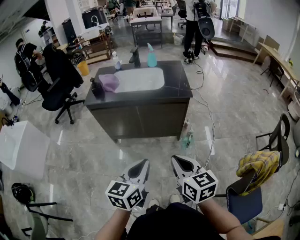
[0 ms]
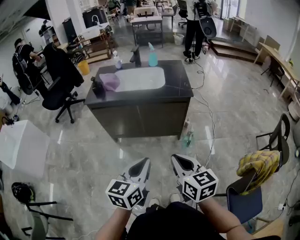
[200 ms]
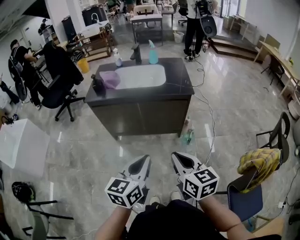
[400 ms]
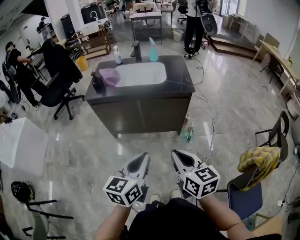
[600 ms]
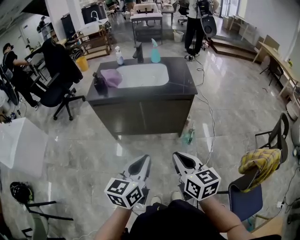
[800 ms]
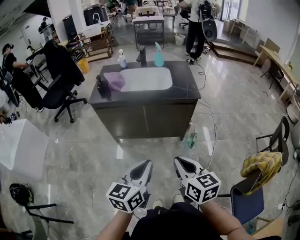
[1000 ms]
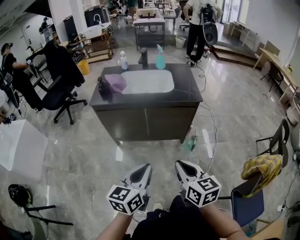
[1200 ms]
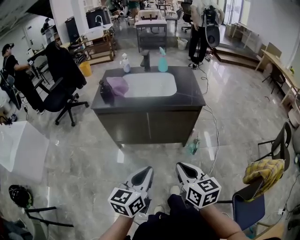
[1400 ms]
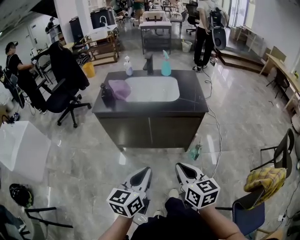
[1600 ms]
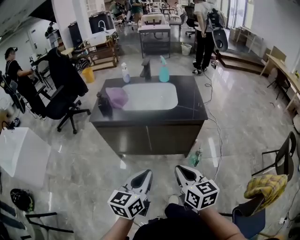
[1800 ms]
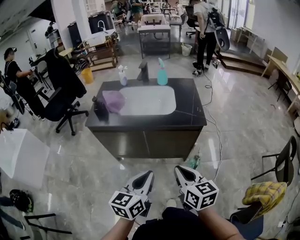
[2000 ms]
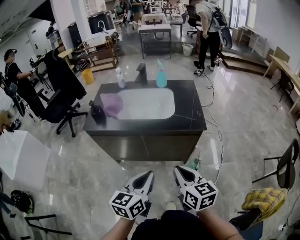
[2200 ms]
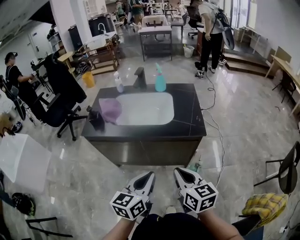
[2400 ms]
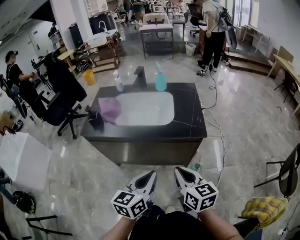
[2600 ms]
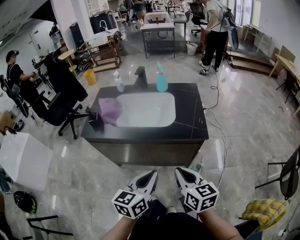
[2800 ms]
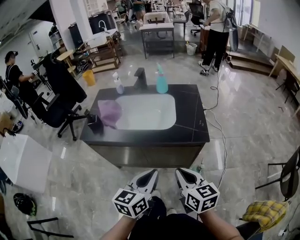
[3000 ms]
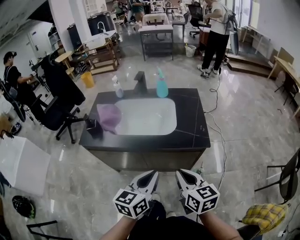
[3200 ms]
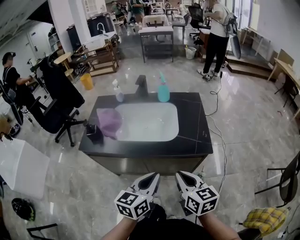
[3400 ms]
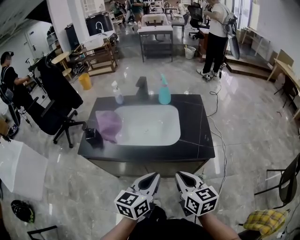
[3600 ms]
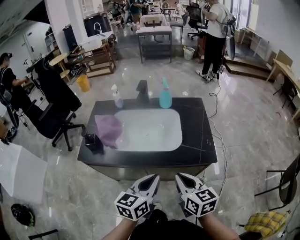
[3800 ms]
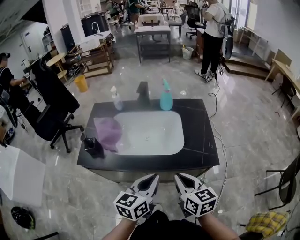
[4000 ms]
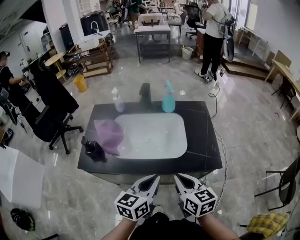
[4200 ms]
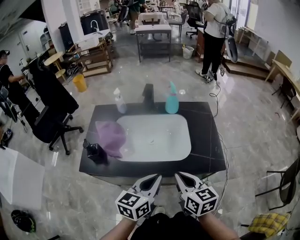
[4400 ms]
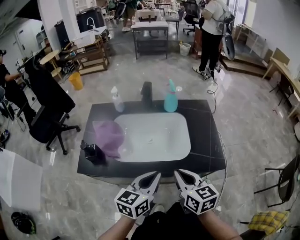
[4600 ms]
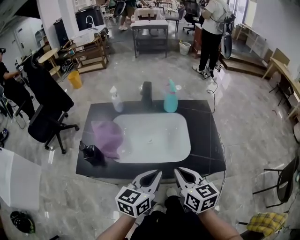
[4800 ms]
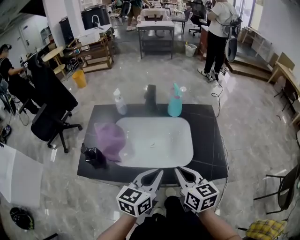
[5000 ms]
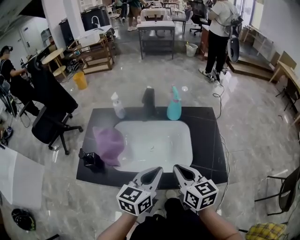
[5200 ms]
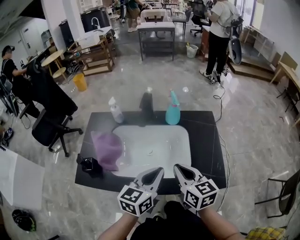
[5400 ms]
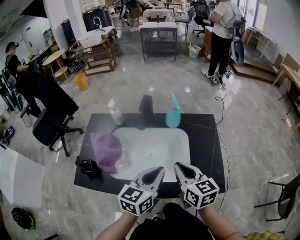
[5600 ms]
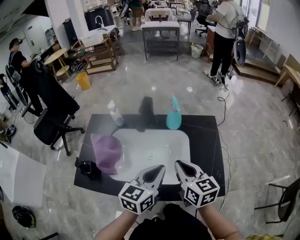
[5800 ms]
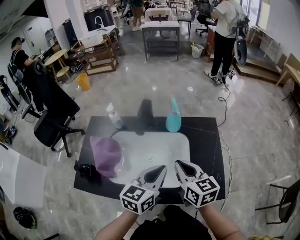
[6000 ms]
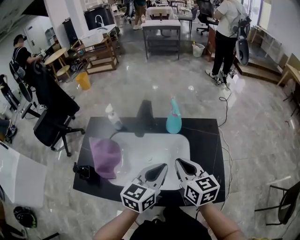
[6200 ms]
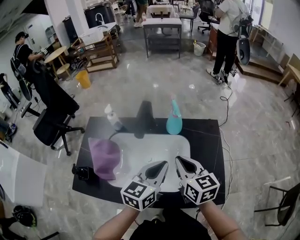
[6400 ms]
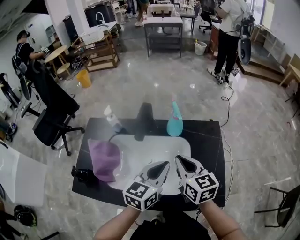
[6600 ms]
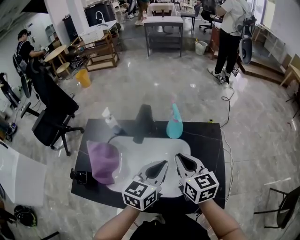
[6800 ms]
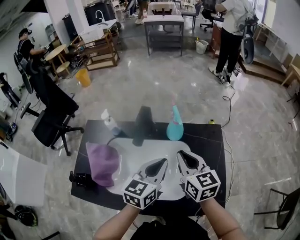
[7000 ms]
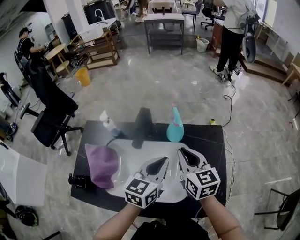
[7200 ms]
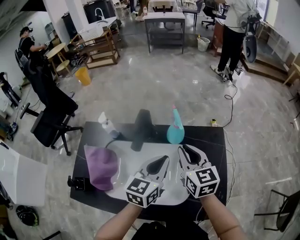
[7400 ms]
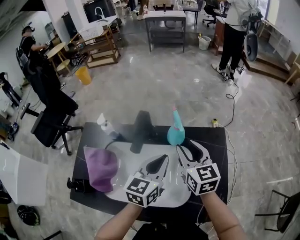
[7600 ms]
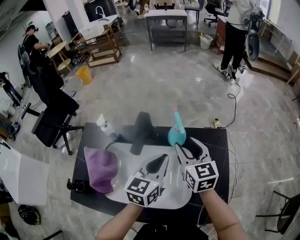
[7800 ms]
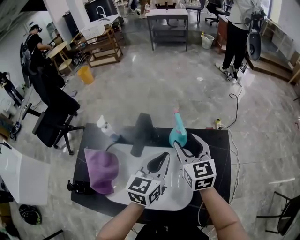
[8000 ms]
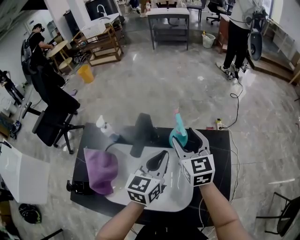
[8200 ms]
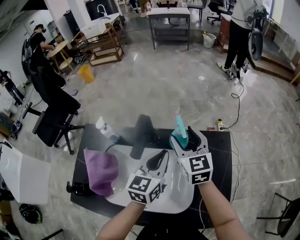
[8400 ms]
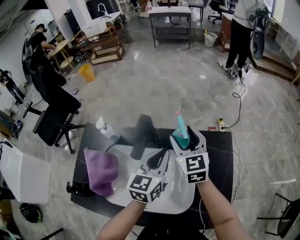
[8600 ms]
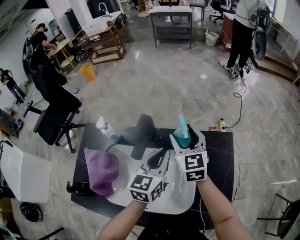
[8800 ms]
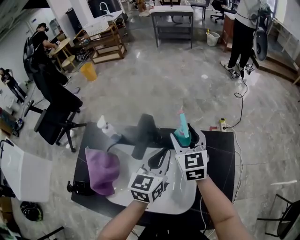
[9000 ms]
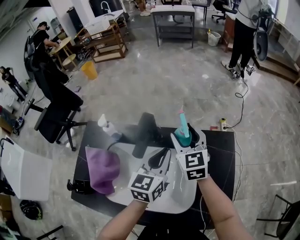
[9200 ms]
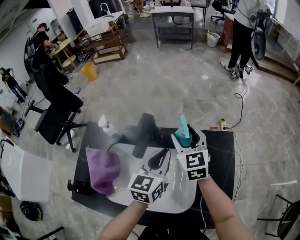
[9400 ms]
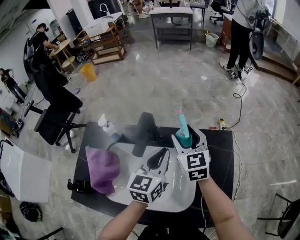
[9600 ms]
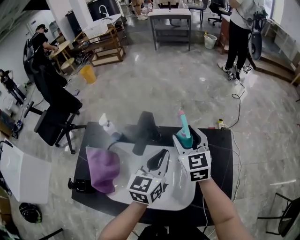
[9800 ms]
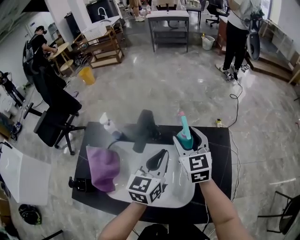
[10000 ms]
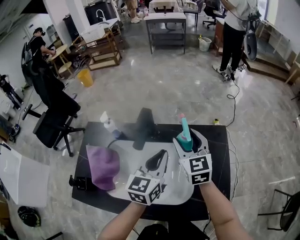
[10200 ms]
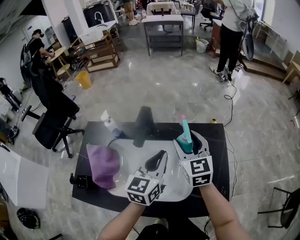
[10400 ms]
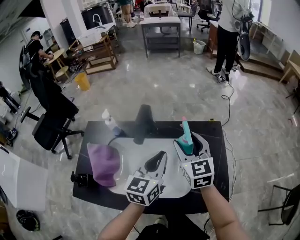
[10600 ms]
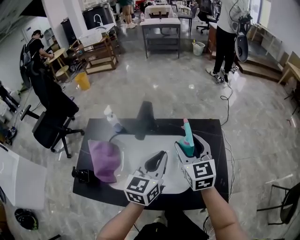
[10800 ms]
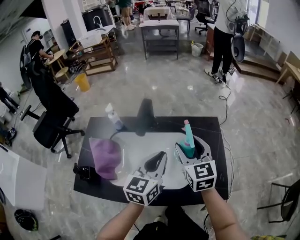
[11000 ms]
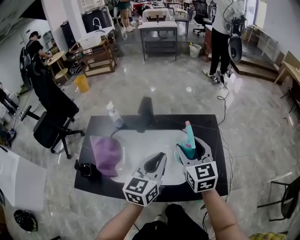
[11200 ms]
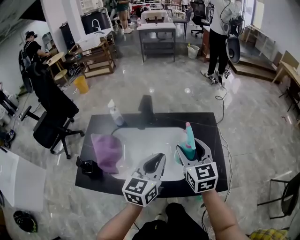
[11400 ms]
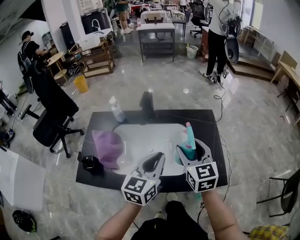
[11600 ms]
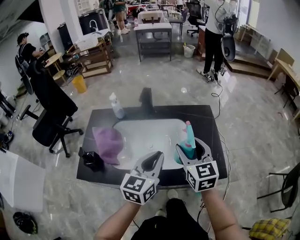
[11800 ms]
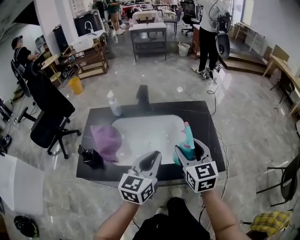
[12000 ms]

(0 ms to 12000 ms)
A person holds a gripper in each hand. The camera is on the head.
0 ms - 1600 ms: The left gripper is displaced to the left and forward by about 10 cm; the right gripper shifts roughly 10 cm forward and to the left.
1600 ms - 3000 ms: The right gripper moves forward, approximately 20 cm. Meanwhile the left gripper goes approximately 25 cm forward and to the right.
3000 ms - 4400 ms: Both grippers move forward and to the left, some 20 cm.
4400 ms - 6000 ms: Both grippers travel together forward, roughly 20 cm.
6000 ms - 7600 ms: Both grippers travel together forward, about 15 cm. The right gripper opens.
7600 ms - 9000 ms: The right gripper is displaced forward by roughly 10 cm, and opens up; the left gripper goes some 5 cm forward.
9000 ms - 10400 ms: The two grippers go about 10 cm backward.
10400 ms - 12000 ms: Both grippers move backward, roughly 25 cm.

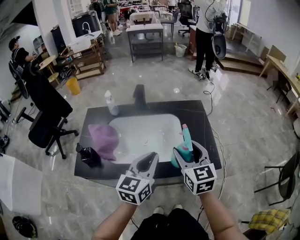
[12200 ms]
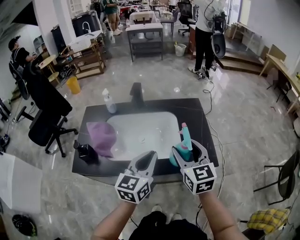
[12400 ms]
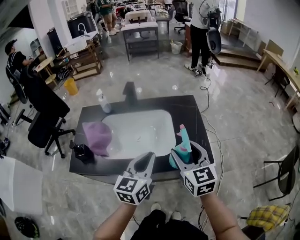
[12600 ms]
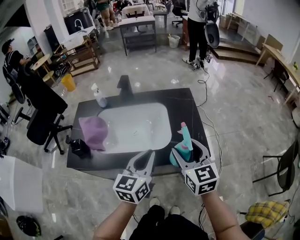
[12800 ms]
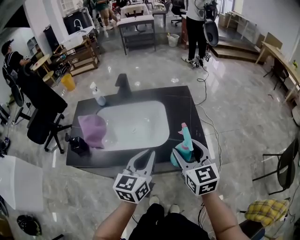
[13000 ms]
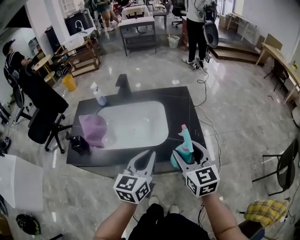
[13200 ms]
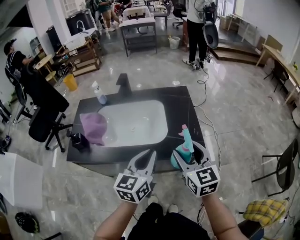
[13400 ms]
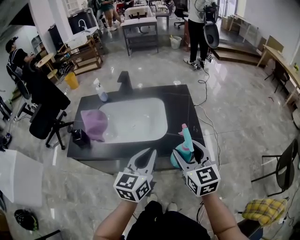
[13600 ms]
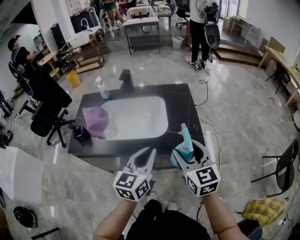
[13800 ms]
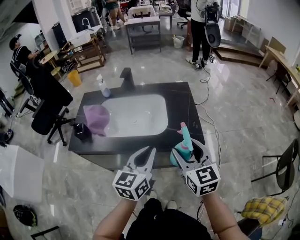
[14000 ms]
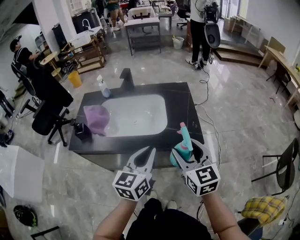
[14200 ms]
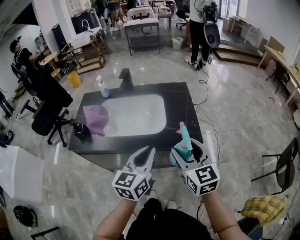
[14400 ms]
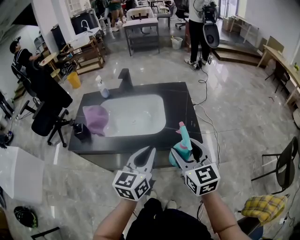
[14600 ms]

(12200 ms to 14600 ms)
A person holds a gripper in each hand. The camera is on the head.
12200 ms - 13400 ms: The two grippers go roughly 15 cm to the right and backward.
13400 ms - 14600 ms: The left gripper ends up approximately 5 cm from where it was. The right gripper shifts some 5 cm backward.

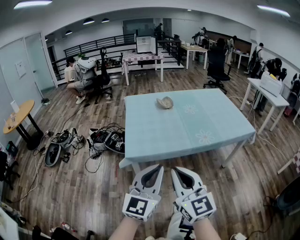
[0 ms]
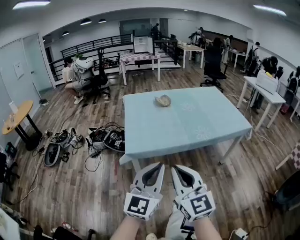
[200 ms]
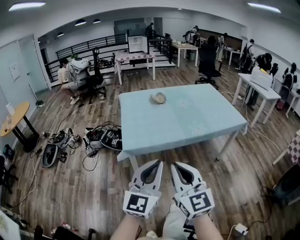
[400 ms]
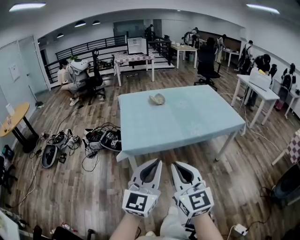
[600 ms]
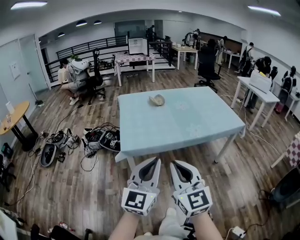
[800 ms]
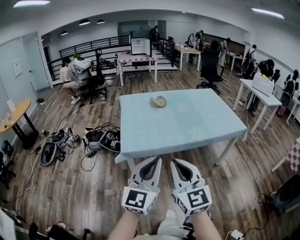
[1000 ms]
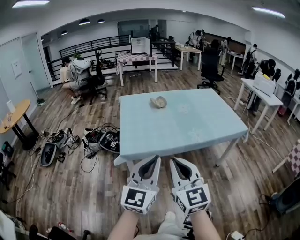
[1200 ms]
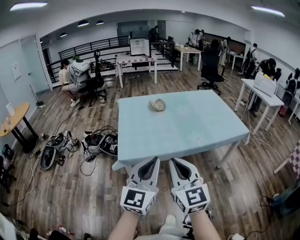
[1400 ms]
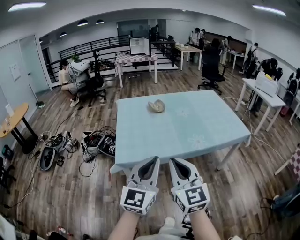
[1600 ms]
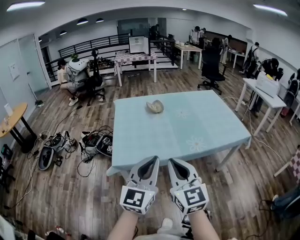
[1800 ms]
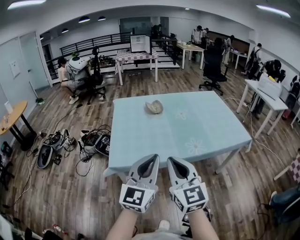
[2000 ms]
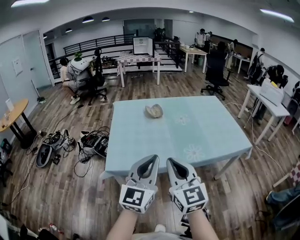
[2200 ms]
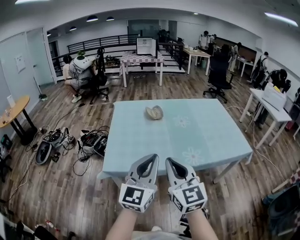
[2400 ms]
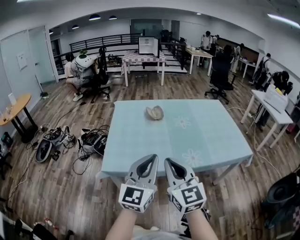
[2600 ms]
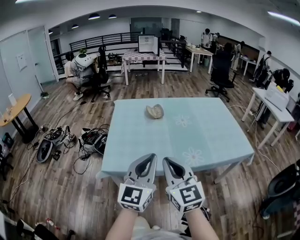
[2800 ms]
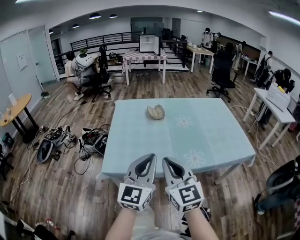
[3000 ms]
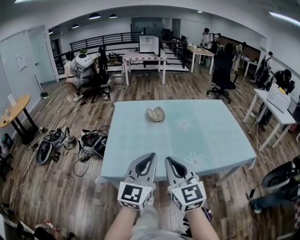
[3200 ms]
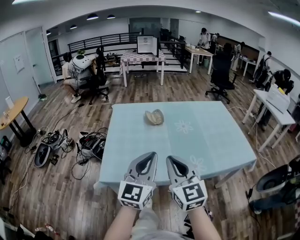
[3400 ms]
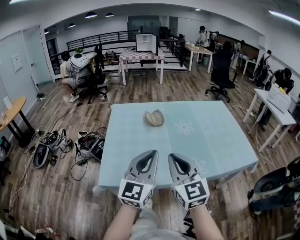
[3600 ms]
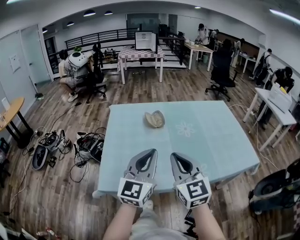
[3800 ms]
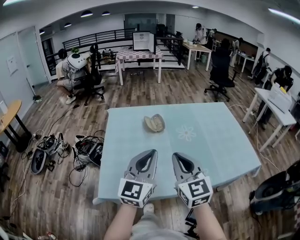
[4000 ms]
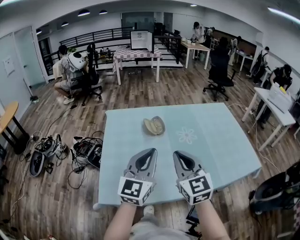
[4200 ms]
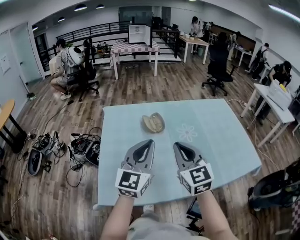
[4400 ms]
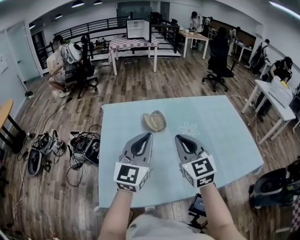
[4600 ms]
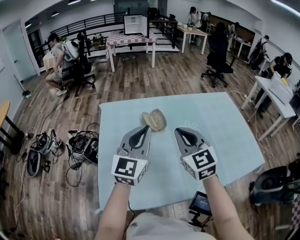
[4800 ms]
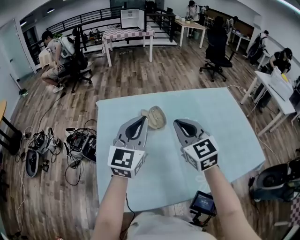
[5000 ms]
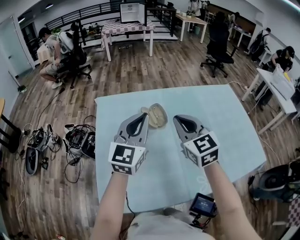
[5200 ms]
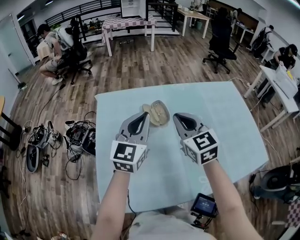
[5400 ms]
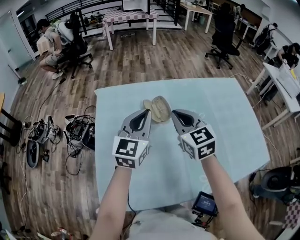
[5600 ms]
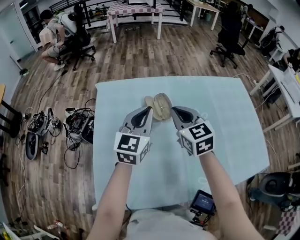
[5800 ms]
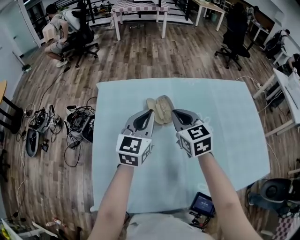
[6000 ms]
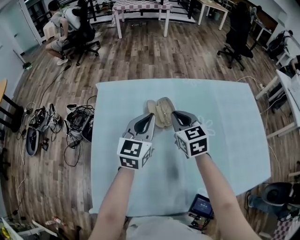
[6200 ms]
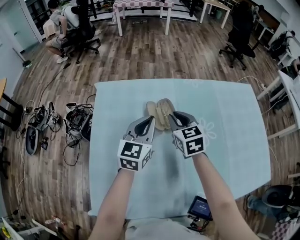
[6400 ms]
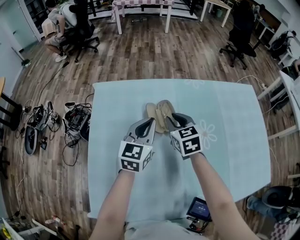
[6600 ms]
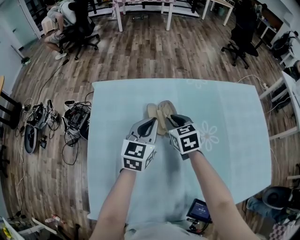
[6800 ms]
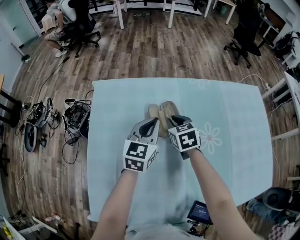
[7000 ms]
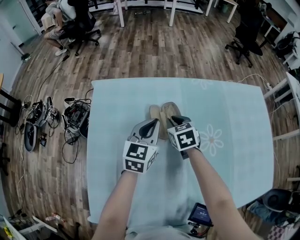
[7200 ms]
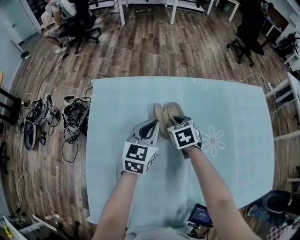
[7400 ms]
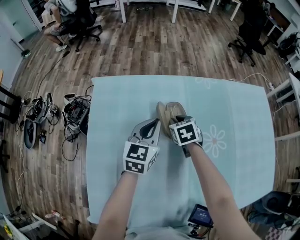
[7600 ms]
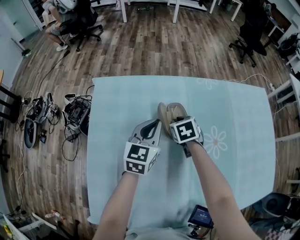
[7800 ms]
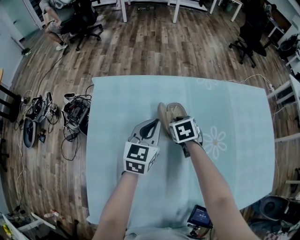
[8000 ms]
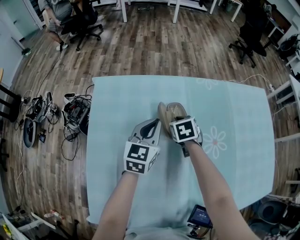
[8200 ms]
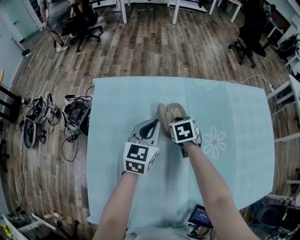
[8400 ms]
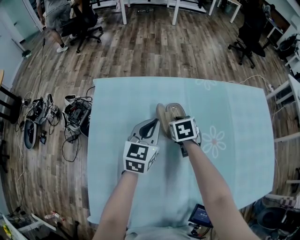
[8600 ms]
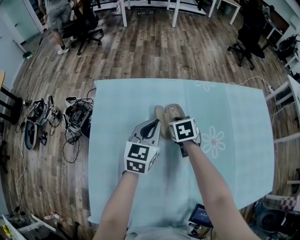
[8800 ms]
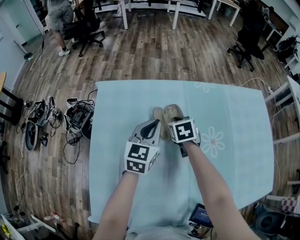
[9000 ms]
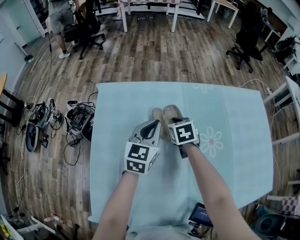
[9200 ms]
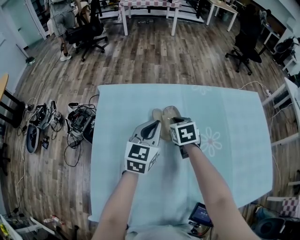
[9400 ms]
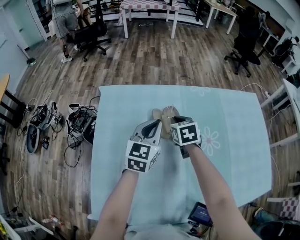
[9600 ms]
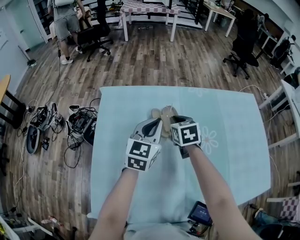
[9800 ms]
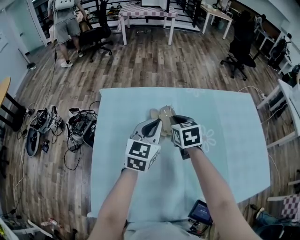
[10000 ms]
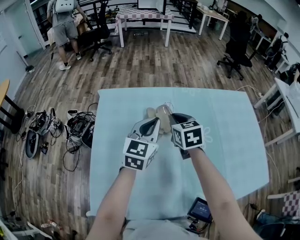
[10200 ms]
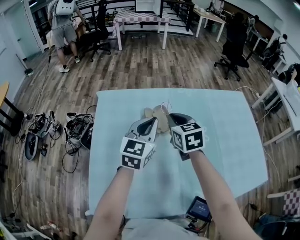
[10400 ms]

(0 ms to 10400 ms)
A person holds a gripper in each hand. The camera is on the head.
0 ms - 1400 ms: The left gripper reaches approximately 5 cm backward, then returns.
1400 ms - 3000 ms: The left gripper shifts approximately 20 cm forward and to the right; the right gripper travels forward by roughly 15 cm.
3000 ms - 4400 ms: Both grippers move forward, about 25 cm.
4400 ms - 6000 ms: Both grippers travel together forward and downward, about 25 cm.
6000 ms - 7400 ms: Both grippers move downward and forward, about 20 cm. The right gripper swivels about 30 degrees.
7400 ms - 9000 ms: The grippers stay close to where they were, moving slightly.
9000 ms - 10400 ms: The left gripper shifts some 15 cm upward and backward. The right gripper shifts about 20 cm upward and backward, and swivels about 20 degrees.
